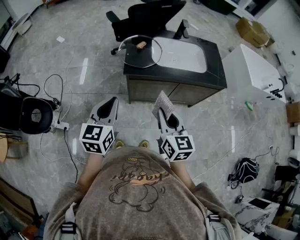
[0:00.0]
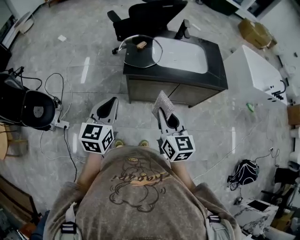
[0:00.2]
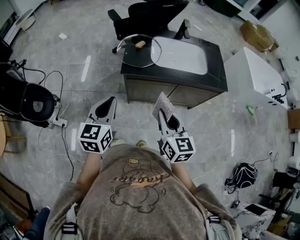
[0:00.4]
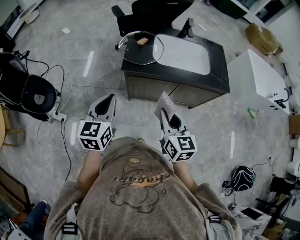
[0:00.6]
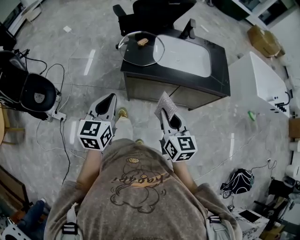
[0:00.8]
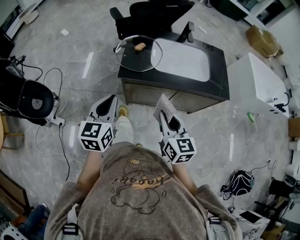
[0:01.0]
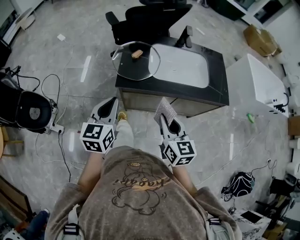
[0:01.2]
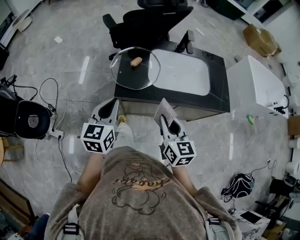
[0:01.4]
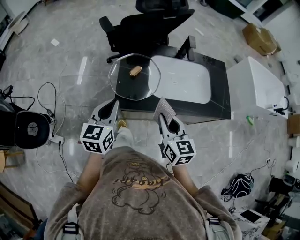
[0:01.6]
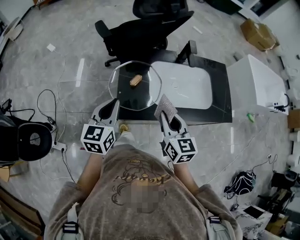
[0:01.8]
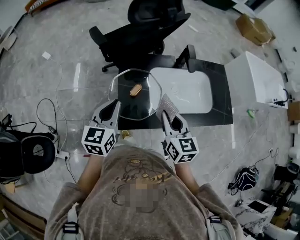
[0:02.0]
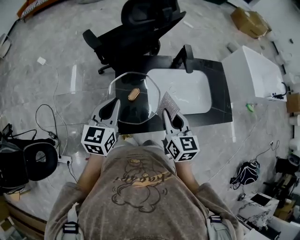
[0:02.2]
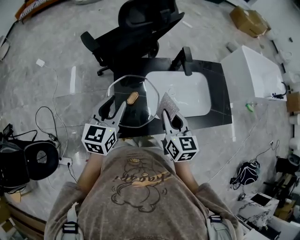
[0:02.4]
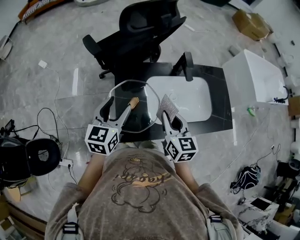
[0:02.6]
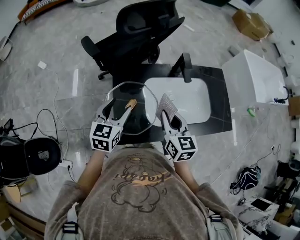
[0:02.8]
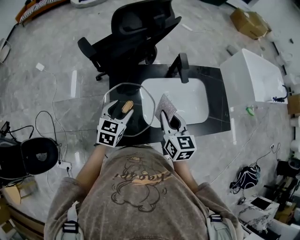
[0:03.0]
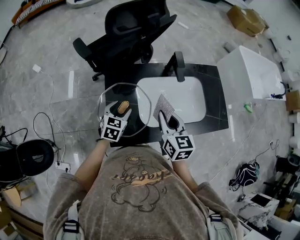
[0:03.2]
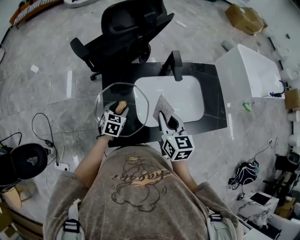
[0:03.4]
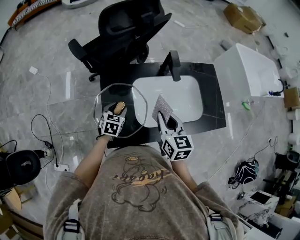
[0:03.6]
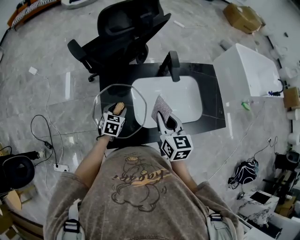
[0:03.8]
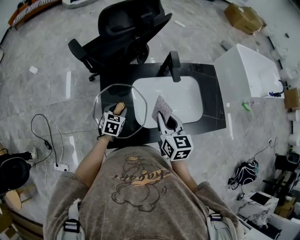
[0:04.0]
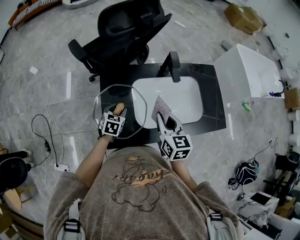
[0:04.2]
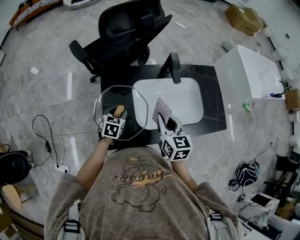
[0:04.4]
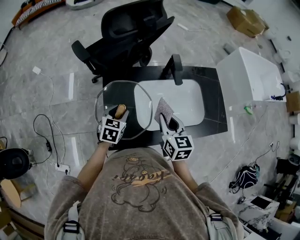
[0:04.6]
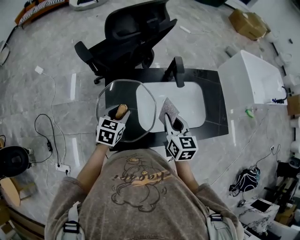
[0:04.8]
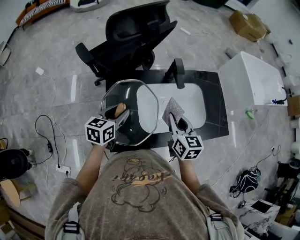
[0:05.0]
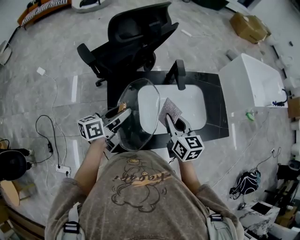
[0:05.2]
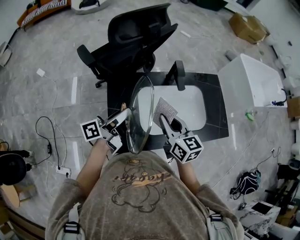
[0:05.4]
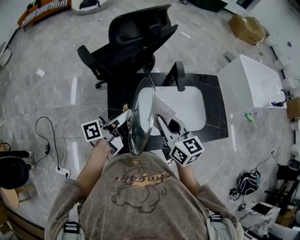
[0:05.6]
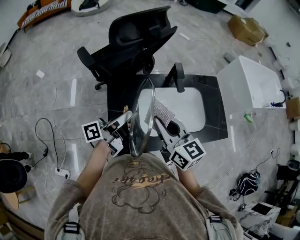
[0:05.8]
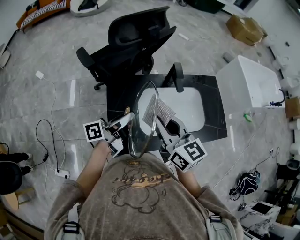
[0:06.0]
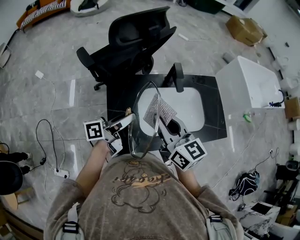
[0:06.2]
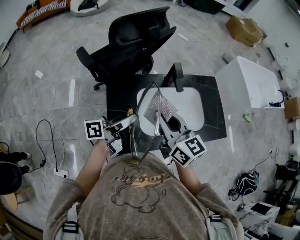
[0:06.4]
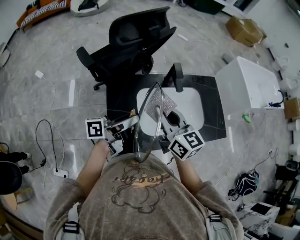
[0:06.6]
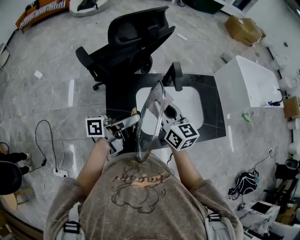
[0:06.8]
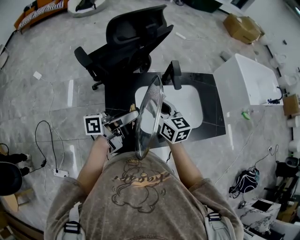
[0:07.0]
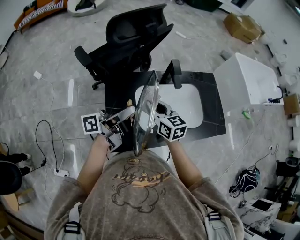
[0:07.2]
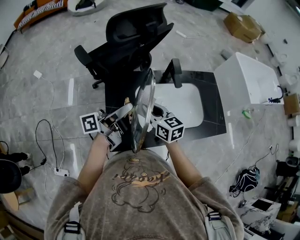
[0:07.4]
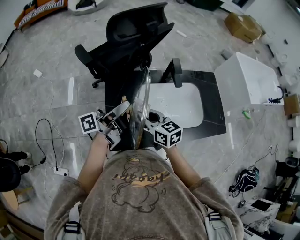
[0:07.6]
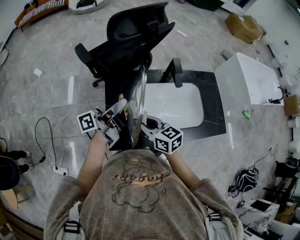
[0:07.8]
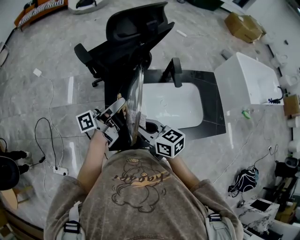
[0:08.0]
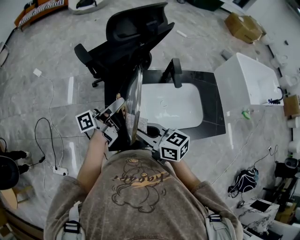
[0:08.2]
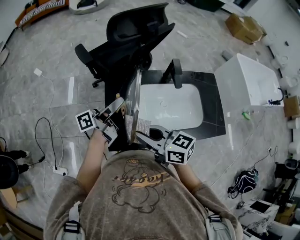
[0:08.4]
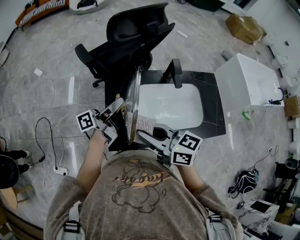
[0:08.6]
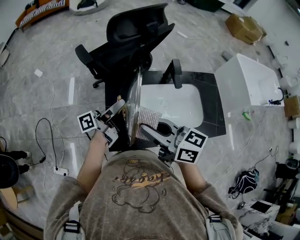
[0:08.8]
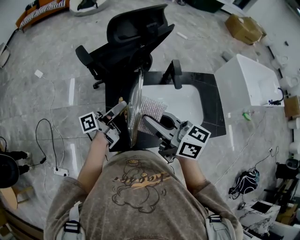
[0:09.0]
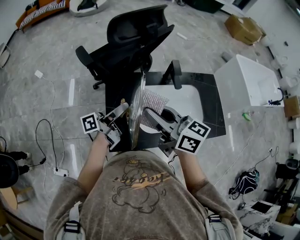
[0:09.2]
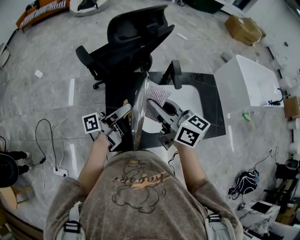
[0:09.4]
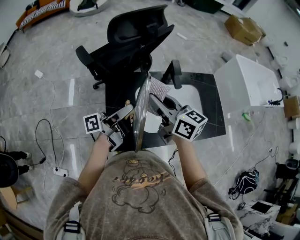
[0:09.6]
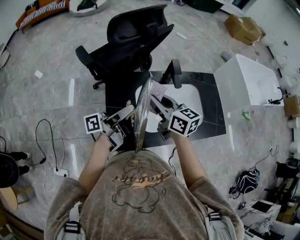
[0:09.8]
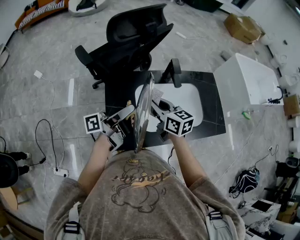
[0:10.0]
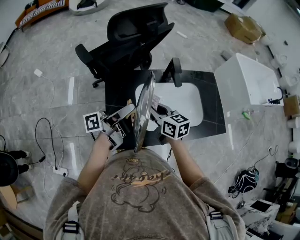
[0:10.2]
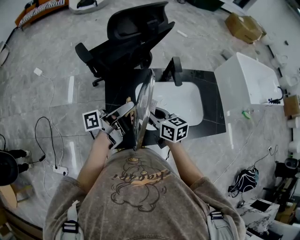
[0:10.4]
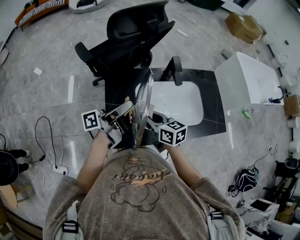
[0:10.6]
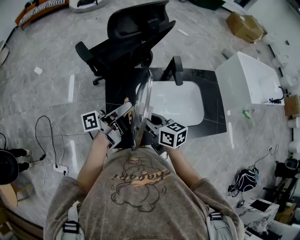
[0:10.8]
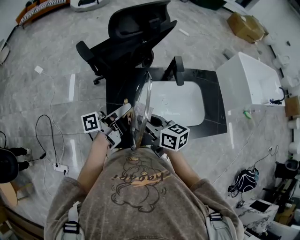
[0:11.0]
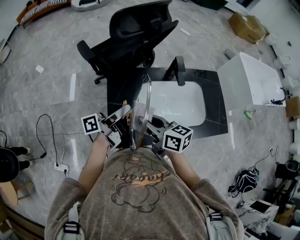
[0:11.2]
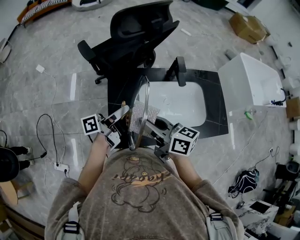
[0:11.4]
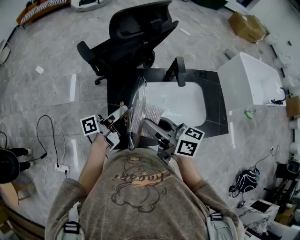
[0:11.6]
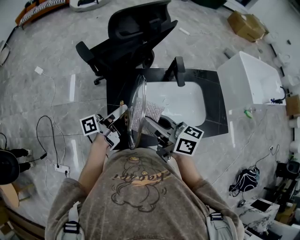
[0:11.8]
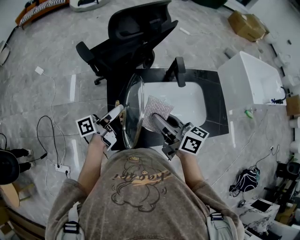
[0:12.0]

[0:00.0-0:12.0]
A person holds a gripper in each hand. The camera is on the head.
0:00.0 to 0:01.6: The two grippers go roughly 20 cm forward.
0:01.6 to 0:03.0: The two grippers go about 20 cm forward. The left gripper rotates some 20 degrees, and opens.
0:03.0 to 0:04.4: The left gripper shifts roughly 10 cm downward, and closes its fingers.
0:04.4 to 0:06.0: The right gripper is displaced upward and to the left by roughly 15 cm, and turns by about 20 degrees. The left gripper goes approximately 20 cm upward, and tips its fingers upward by roughly 50 degrees.
0:06.0 to 0:07.6: The right gripper is displaced downward by about 15 cm.
0:07.6 to 0:09.0: The right gripper heads upward, covering about 15 cm, and swivels about 20 degrees.
0:09.0 to 0:10.4: The right gripper moves downward, approximately 15 cm, and changes its angle by about 20 degrees.
0:10.4 to 0:12.0: The right gripper moves upward, roughly 10 cm, and changes its angle by approximately 20 degrees. The left gripper is displaced to the left by about 5 cm.

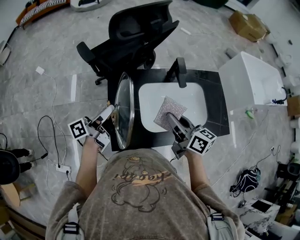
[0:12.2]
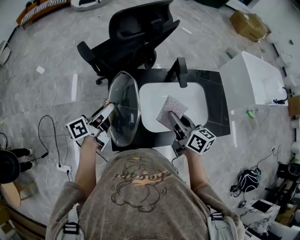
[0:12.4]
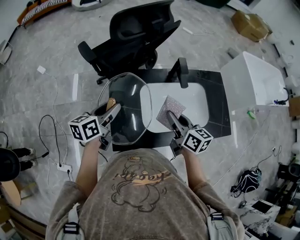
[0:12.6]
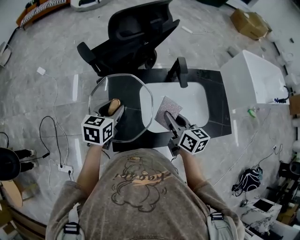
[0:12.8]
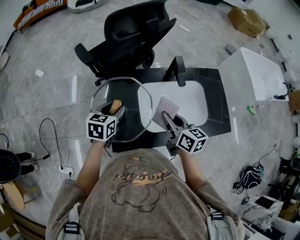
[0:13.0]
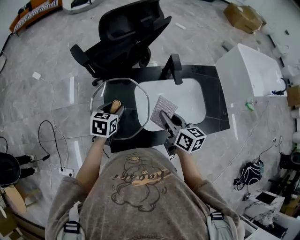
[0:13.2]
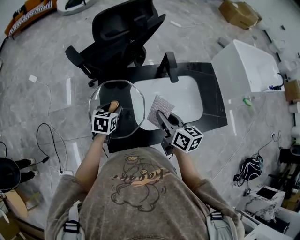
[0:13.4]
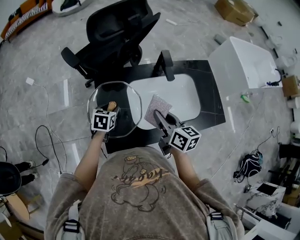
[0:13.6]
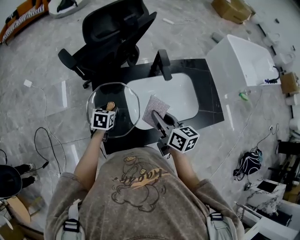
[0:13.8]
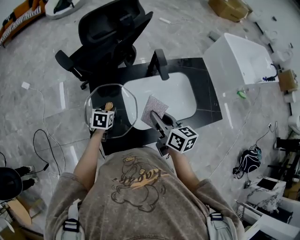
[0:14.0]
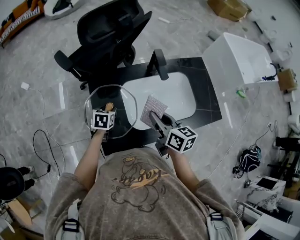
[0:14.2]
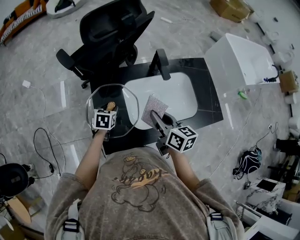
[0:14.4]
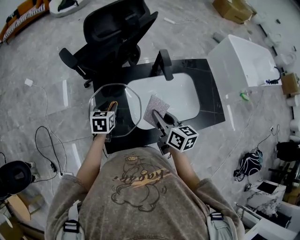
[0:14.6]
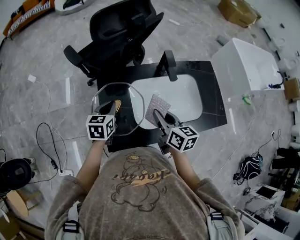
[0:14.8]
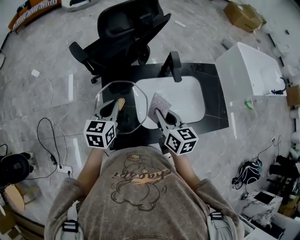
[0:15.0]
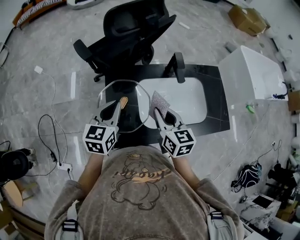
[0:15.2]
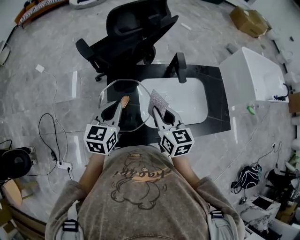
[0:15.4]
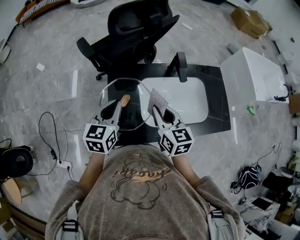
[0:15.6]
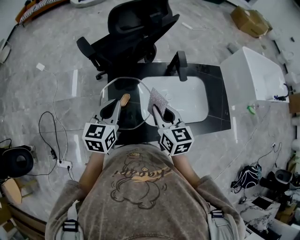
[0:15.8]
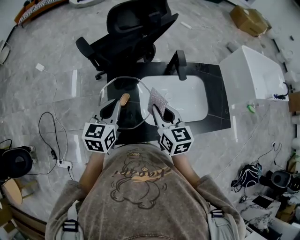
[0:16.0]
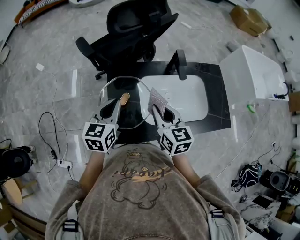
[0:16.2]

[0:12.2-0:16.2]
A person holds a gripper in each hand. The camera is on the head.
0:12.2 to 0:13.6: The left gripper is displaced downward by roughly 15 cm, and tips its fingers downward by some 60 degrees.
0:13.6 to 0:14.8: The left gripper travels upward by approximately 5 cm, and closes.
0:14.8 to 0:16.2: The right gripper changes place by about 5 cm, and turns by approximately 20 degrees. Meanwhile the left gripper shifts some 10 cm upward.

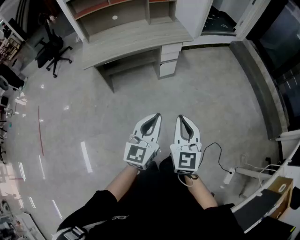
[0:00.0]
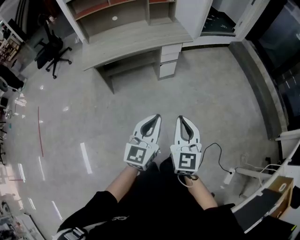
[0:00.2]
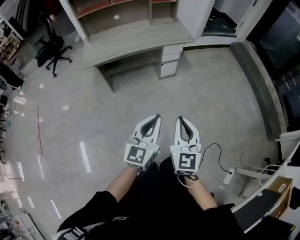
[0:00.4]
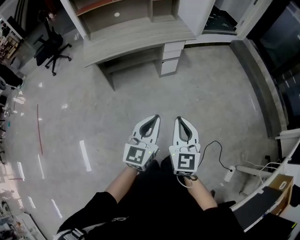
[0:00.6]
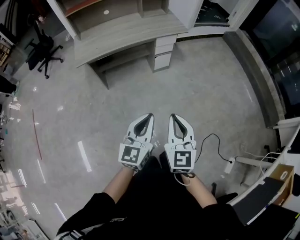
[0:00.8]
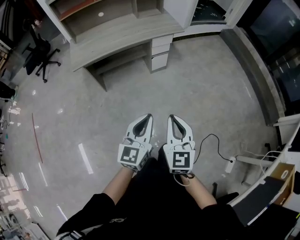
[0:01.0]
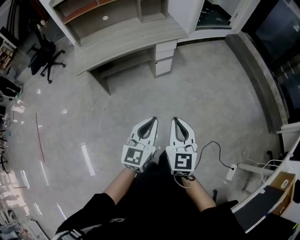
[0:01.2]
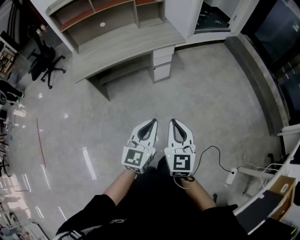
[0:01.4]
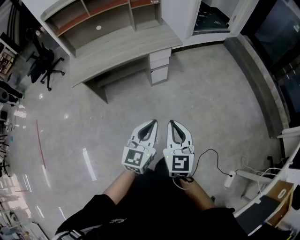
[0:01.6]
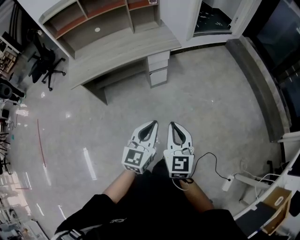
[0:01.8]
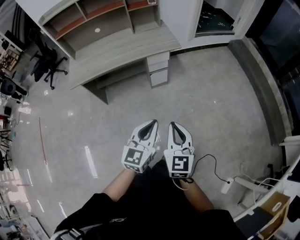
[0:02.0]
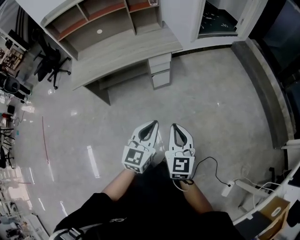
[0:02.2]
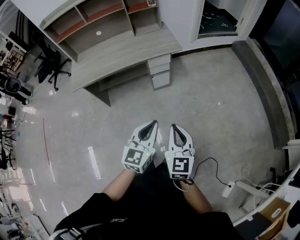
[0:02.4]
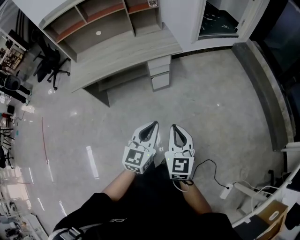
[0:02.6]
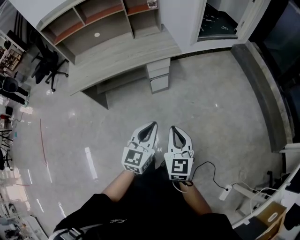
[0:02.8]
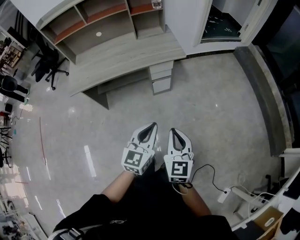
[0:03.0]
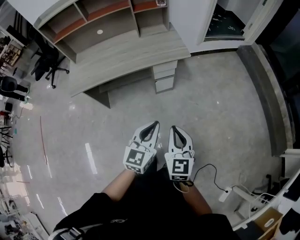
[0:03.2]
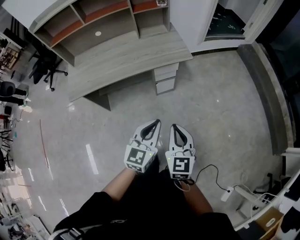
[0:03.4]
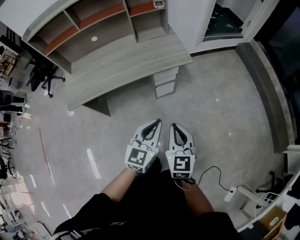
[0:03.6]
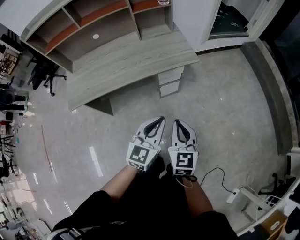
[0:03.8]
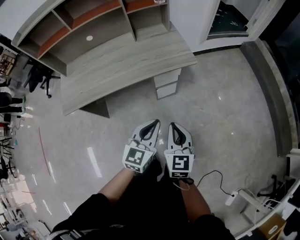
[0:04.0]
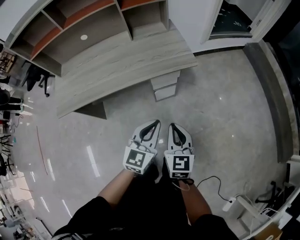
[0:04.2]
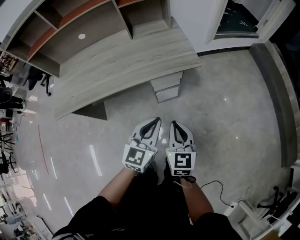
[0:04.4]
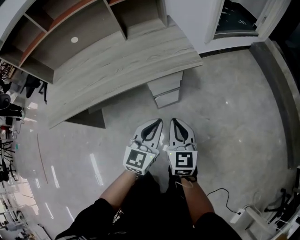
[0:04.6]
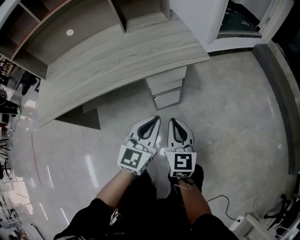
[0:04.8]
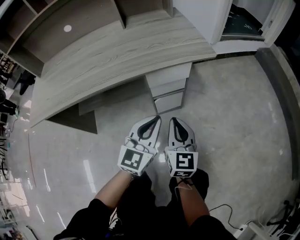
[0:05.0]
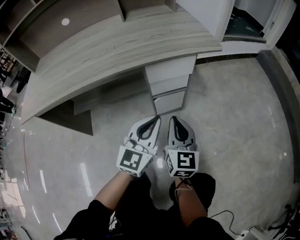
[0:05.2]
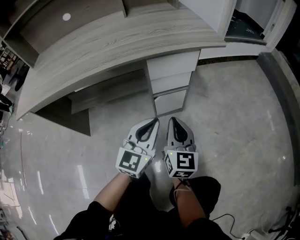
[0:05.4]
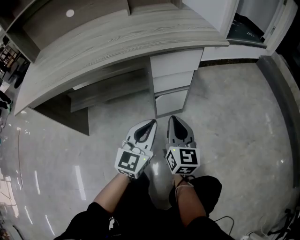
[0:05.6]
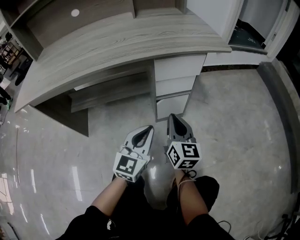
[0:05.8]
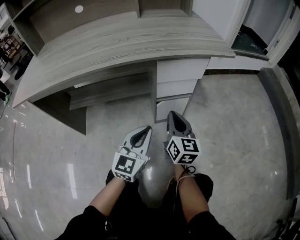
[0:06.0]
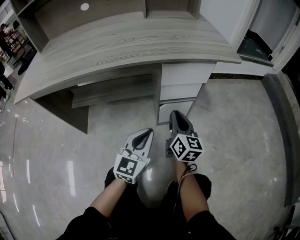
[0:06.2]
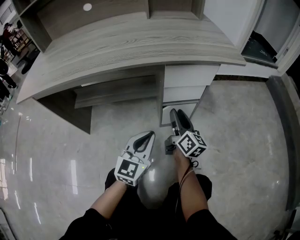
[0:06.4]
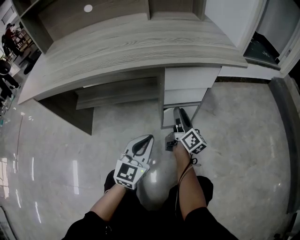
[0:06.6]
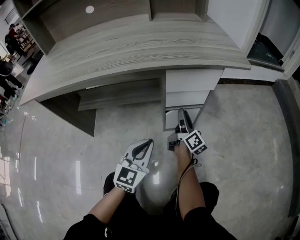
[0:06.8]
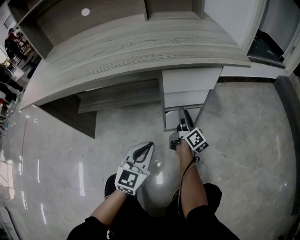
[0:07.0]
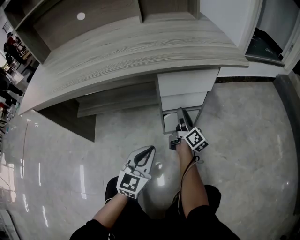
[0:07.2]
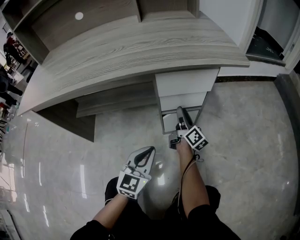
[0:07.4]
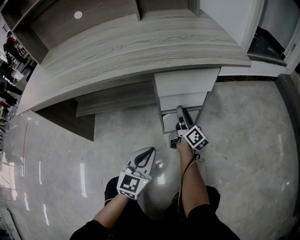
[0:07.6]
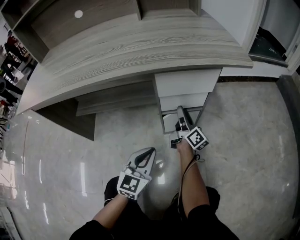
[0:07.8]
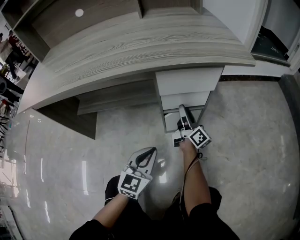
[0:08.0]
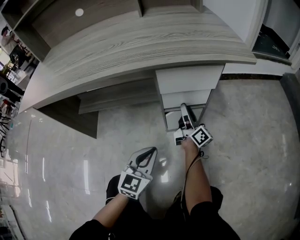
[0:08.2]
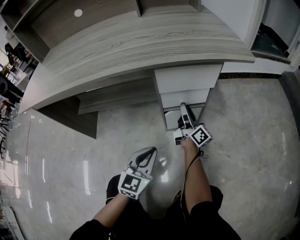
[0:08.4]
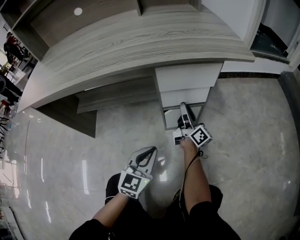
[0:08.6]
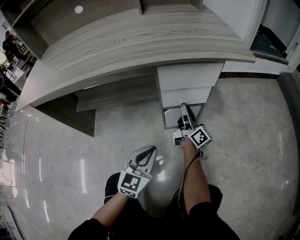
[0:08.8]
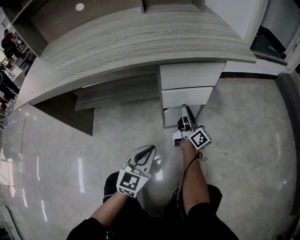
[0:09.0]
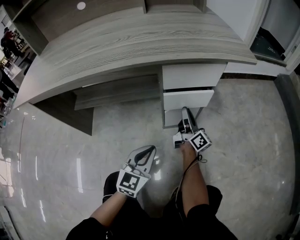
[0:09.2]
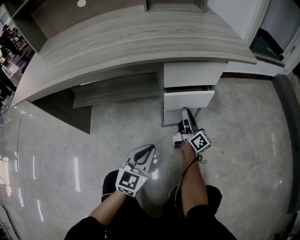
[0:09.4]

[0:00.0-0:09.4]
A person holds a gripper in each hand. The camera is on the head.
0:00.0 to 0:01.6: The two grippers go roughly 10 cm forward.
0:01.6 to 0:03.2: Both grippers travel together forward, some 15 cm.
0:03.2 to 0:04.8: The two grippers go approximately 40 cm forward and downward.
0:04.8 to 0:06.2: The left gripper moves downward, approximately 20 cm. The right gripper moves downward and forward, approximately 25 cm, and swivels about 20 degrees.
0:06.2 to 0:07.8: The right gripper shifts some 15 cm forward and downward, swivels some 40 degrees, and opens up, while the left gripper heads downward, covering about 5 cm.
0:07.8 to 0:09.4: The grippers stay close to where they were, moving slightly.
